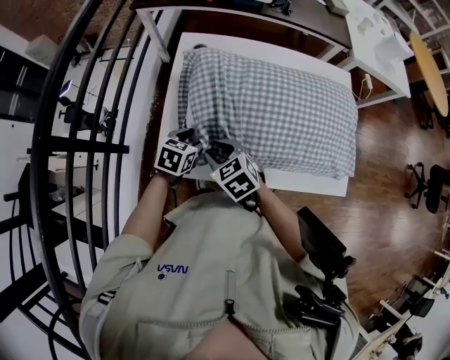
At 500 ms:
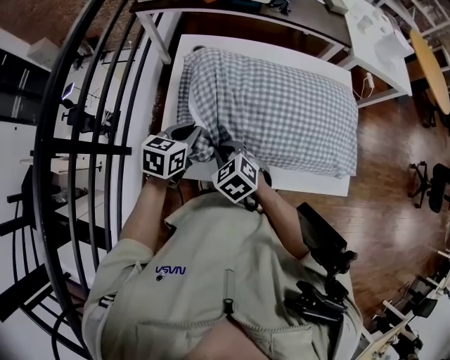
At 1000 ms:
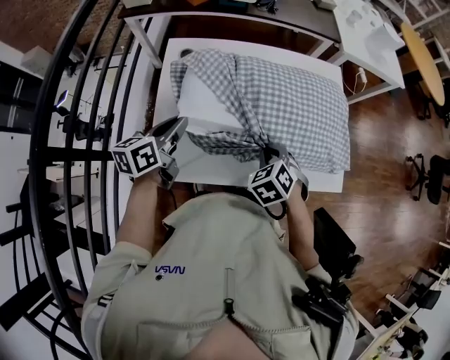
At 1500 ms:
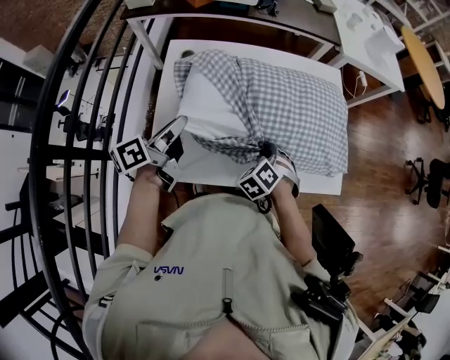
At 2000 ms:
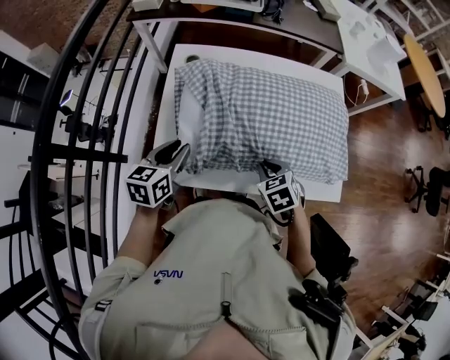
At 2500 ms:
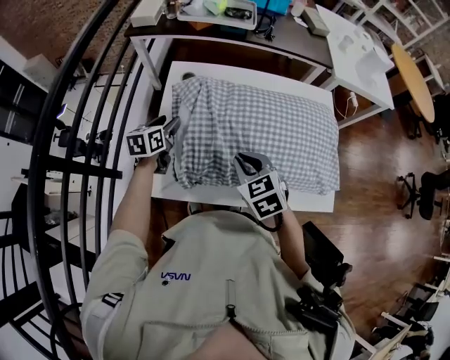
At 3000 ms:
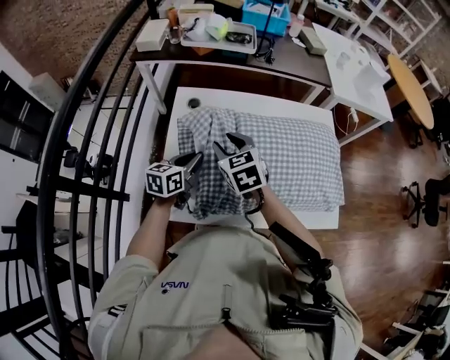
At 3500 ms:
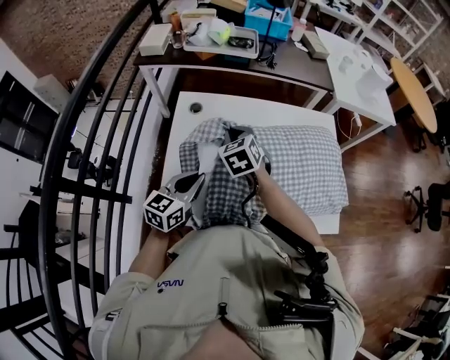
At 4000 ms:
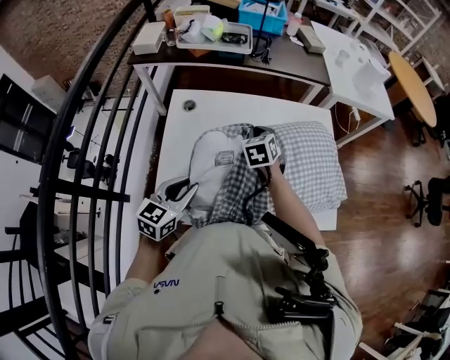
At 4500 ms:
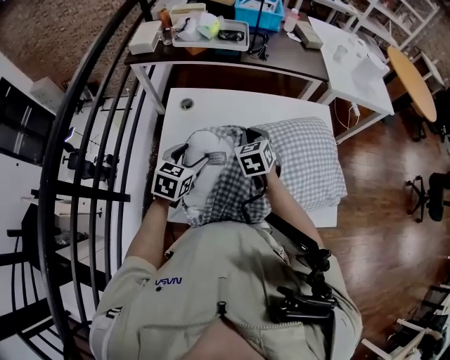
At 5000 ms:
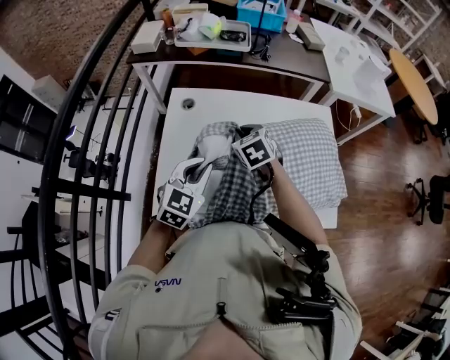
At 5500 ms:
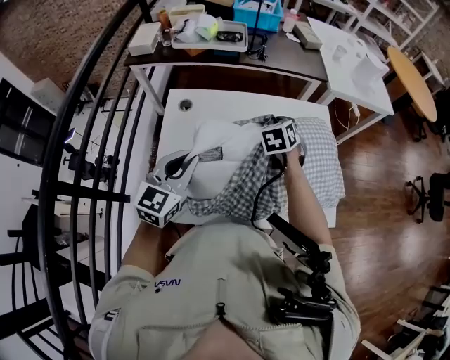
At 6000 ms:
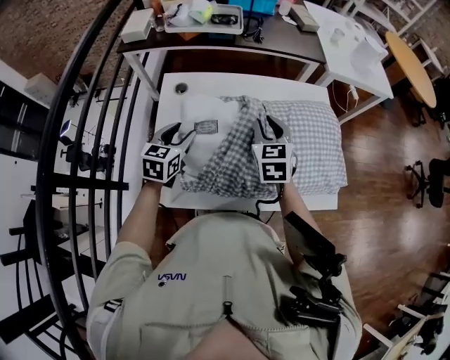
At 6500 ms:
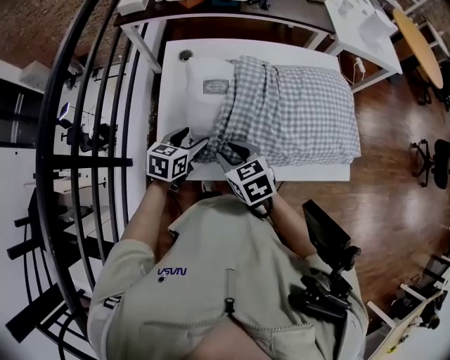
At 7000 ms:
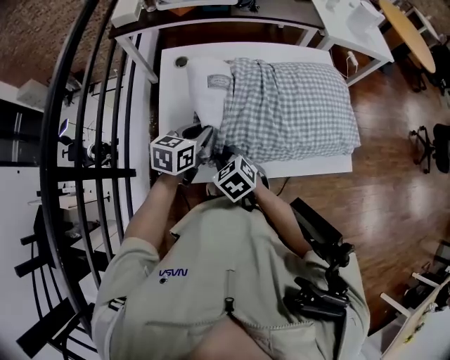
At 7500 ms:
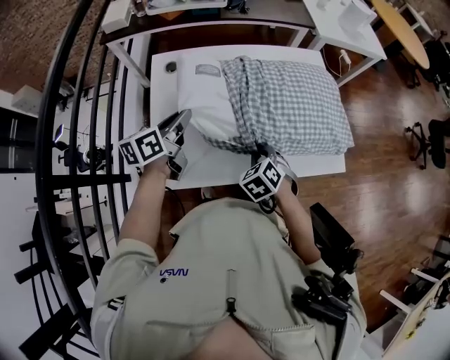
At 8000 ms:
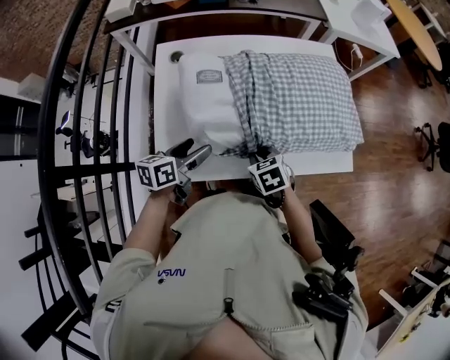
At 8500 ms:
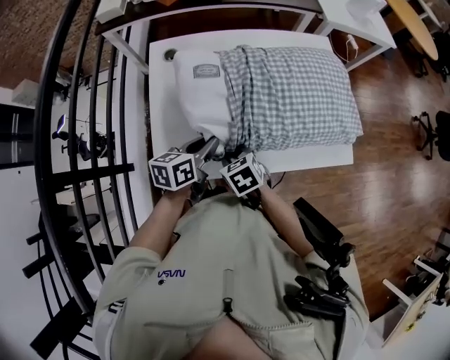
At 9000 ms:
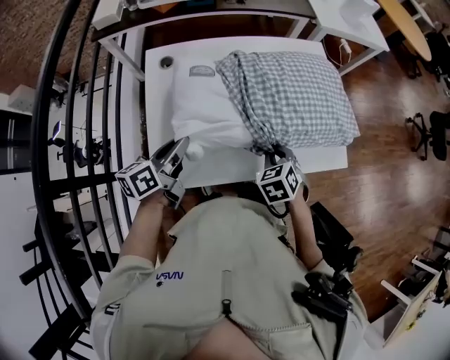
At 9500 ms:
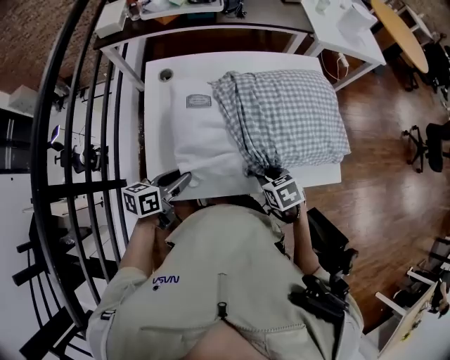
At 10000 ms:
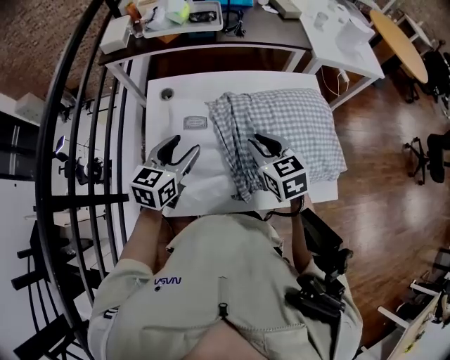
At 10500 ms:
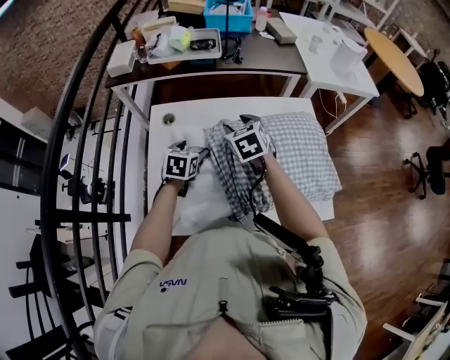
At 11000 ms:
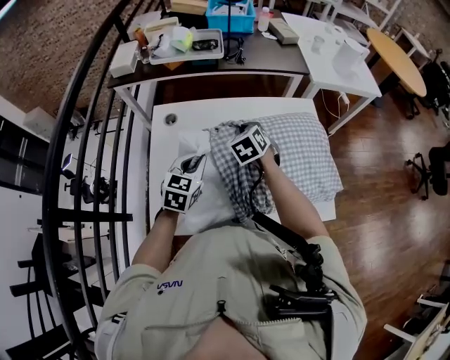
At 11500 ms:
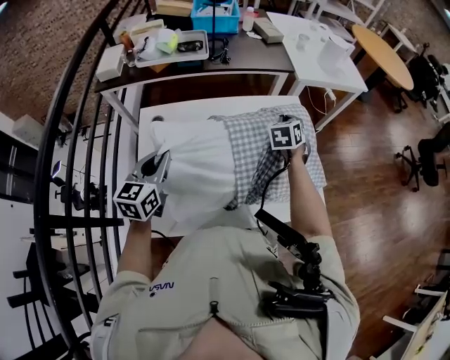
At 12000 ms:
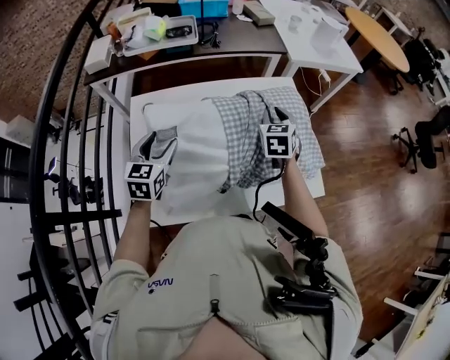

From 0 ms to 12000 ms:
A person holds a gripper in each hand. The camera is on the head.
From 0 ms to 2000 ms: The right gripper changes place by some 20 cm, and rotates roughly 20 degrees. The left gripper travels upward by some 10 cm, and swivels some 20 degrees.
From 2000 ms to 4000 ms: The right gripper travels forward by approximately 25 cm, rotates about 20 degrees, and opens, then closes once more. The left gripper travels forward and back again, roughly 15 cm each way, and rotates approximately 20 degrees.
From 4000 ms to 6000 ms: The left gripper shifts roughly 10 cm forward, and travels upward and back again, about 10 cm each way, while the right gripper goes about 10 cm upward and backward, and opens its fingers.
From 6000 ms to 8000 ms: The left gripper goes forward and backward, approximately 10 cm each way, reversing 2 times, changes its angle by approximately 40 degrees, and opens its fingers, while the right gripper heads backward and downward, covering roughly 25 cm, and tilts its fingers some 30 degrees downward.
From 8000 ms to 10000 ms: The two grippers go roughly 15 cm upward and forward. The left gripper turns by about 30 degrees, and closes, then reopens. The right gripper swivels some 30 degrees.
From 10000 ms to 12000 ms: The left gripper moves up and down over roughly 15 cm, changing direction 2 times, and closes, then opens again. Meanwhile the right gripper goes roughly 20 cm forward and to the right, rotates roughly 30 degrees, and opens, then closes once more.

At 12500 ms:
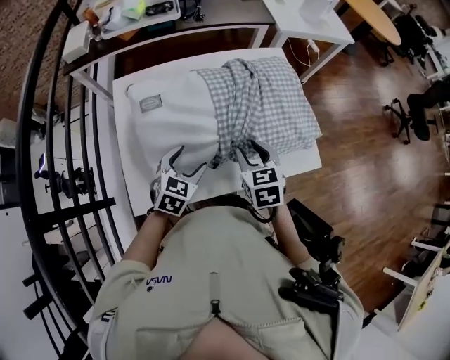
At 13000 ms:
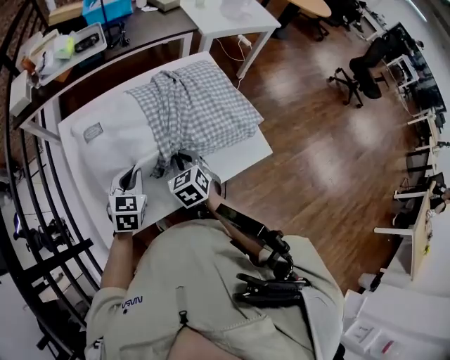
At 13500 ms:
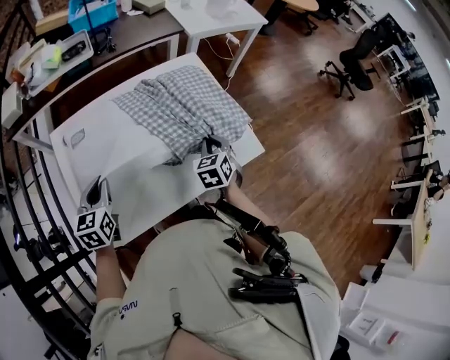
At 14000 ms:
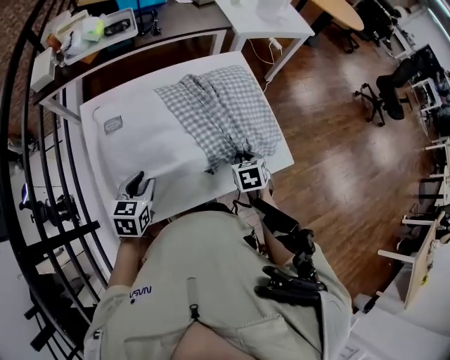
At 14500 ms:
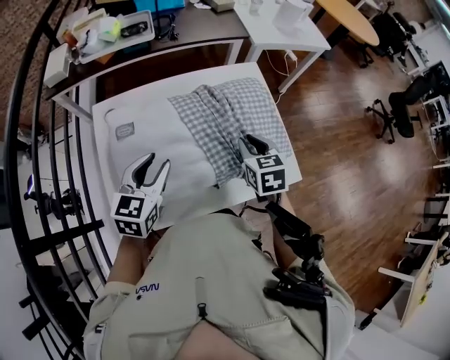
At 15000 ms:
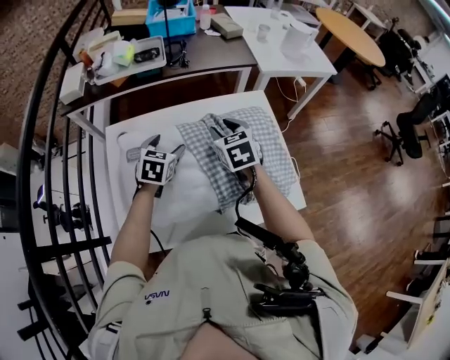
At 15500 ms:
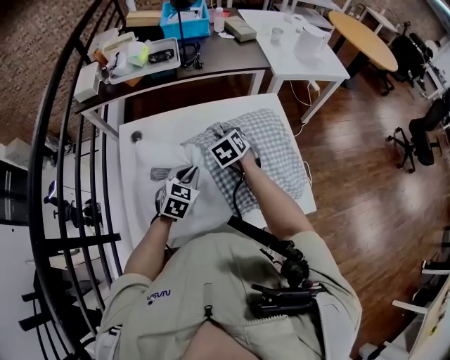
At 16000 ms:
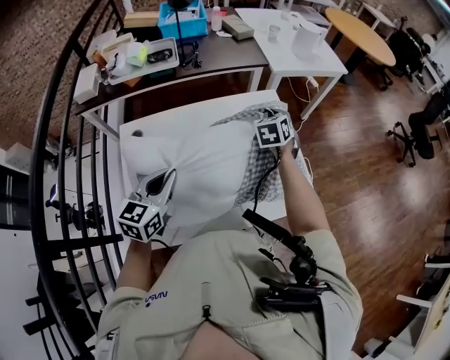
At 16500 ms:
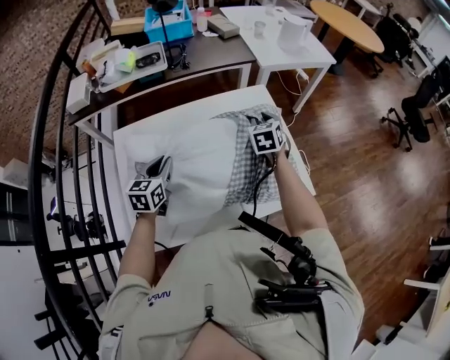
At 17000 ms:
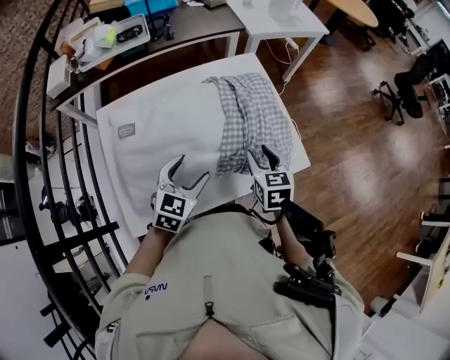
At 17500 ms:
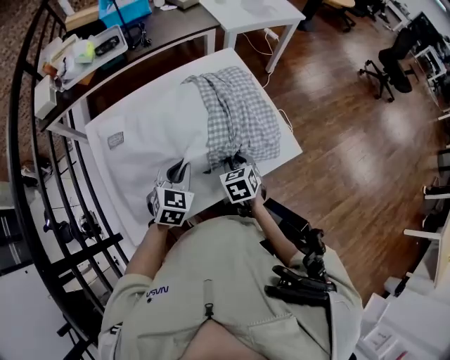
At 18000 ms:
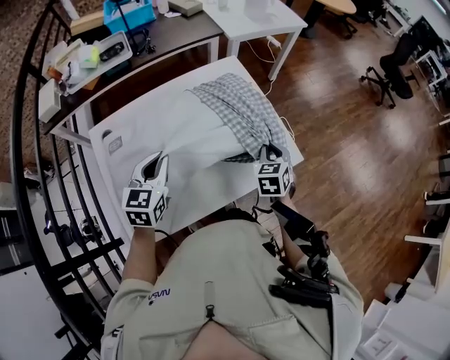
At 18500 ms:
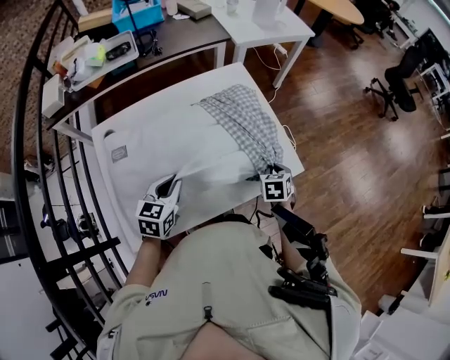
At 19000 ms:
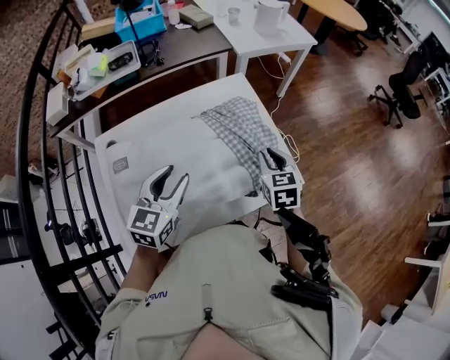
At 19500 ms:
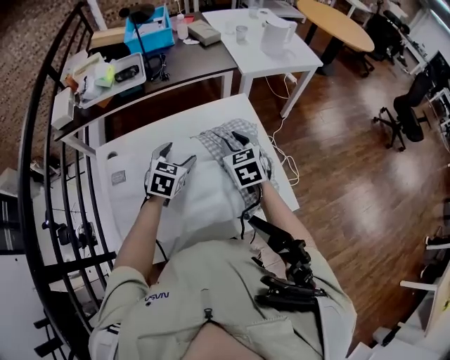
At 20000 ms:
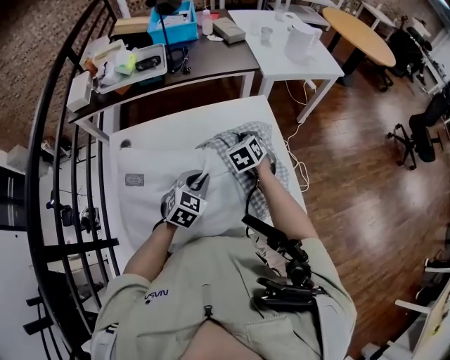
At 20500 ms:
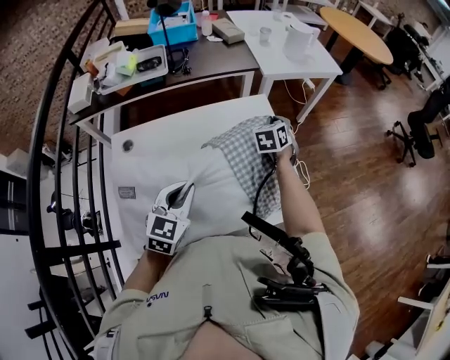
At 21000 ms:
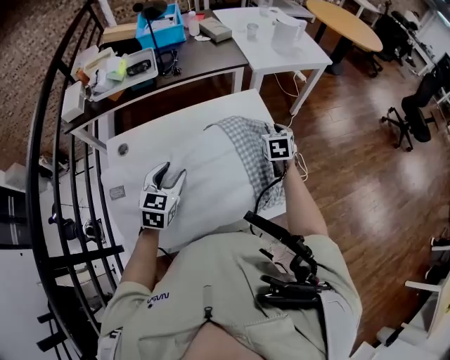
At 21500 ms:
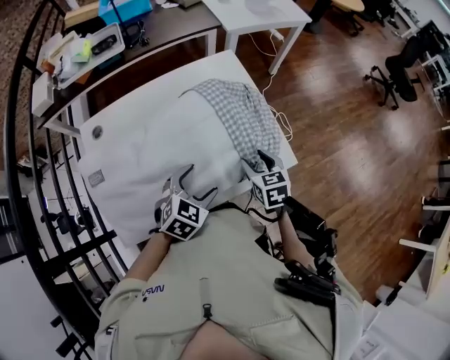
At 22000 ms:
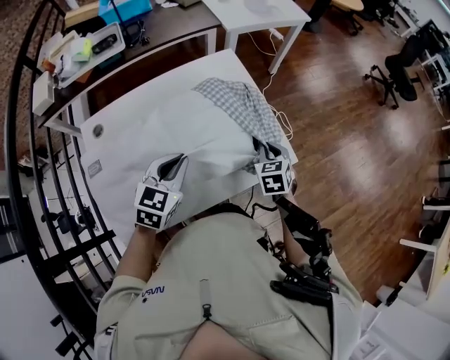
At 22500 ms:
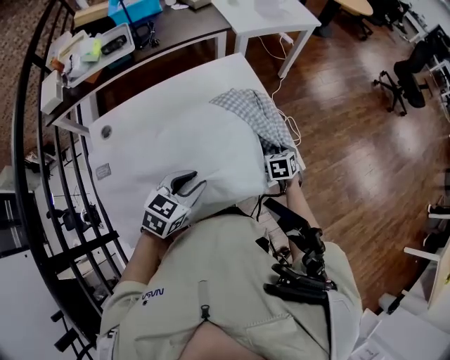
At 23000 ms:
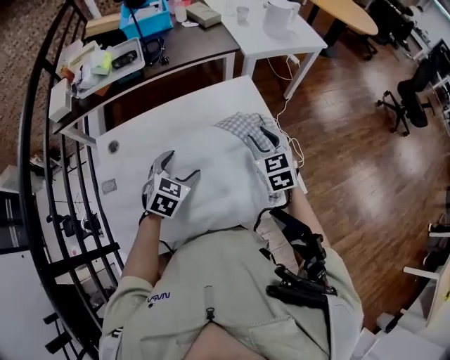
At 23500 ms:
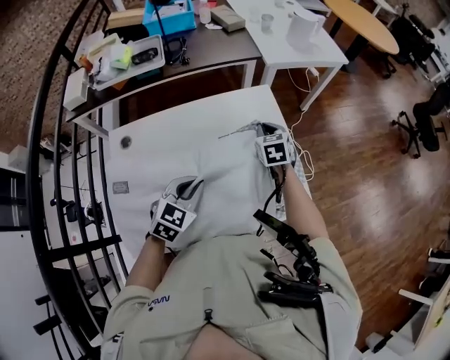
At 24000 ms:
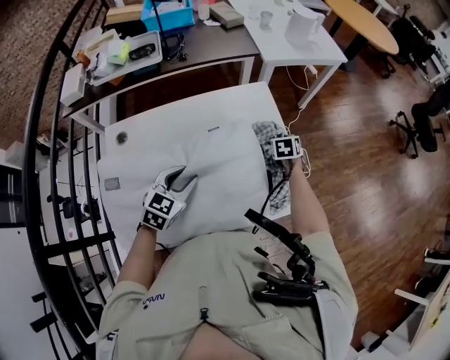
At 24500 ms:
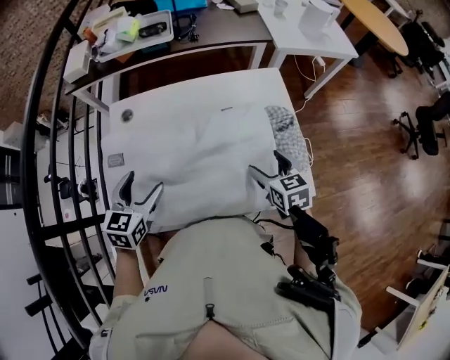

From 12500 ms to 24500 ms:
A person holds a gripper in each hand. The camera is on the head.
From 12500 ms to 14500 ms: The right gripper is displaced forward and to the right by some 10 cm; the left gripper goes up and down, about 15 cm each way, reversing 2 times, and closes up.
From 14500 ms to 16500 ms: The right gripper heads forward, covering some 15 cm. The left gripper moves forward and backward over approximately 15 cm, changing direction 2 times, and opens, then closes again.
From 16500 ms to 18500 ms: The left gripper is displaced to the right and backward by about 15 cm, and opens, then closes again; the right gripper moves backward, to the right and downward, roughly 30 cm, and swivels about 30 degrees.
From 18500 ms to 20500 ms: The left gripper travels upward by approximately 10 cm, reaches some 20 cm forward, then returns, and opens, then closes again. Meanwhile the right gripper shifts roughly 30 cm forward and upward, changes its angle by approximately 20 degrees, and opens, then closes once more.
From 20500 ms to 22500 ms: The right gripper travels backward, downward and to the right by roughly 30 cm, changes its angle by about 20 degrees, and opens, then closes once more. The left gripper goes left and right, about 15 cm each way, reversing 2 times, swivels about 30 degrees, and opens and closes again.
From 22500 ms to 24500 ms: The left gripper shifts by about 20 cm, swivels about 40 degrees, and opens its fingers. The right gripper moves up and down over about 20 cm, changing direction 2 times, changes its angle by roughly 40 degrees, and opens its fingers.

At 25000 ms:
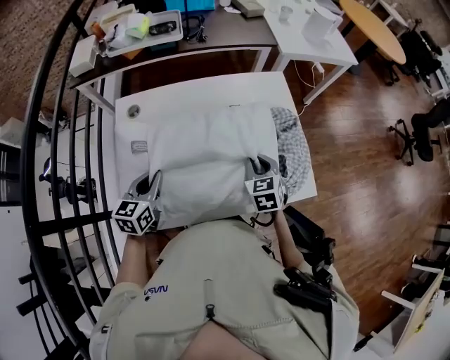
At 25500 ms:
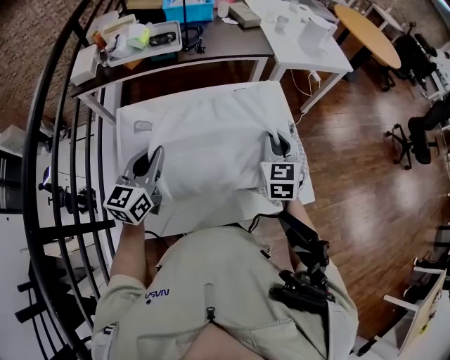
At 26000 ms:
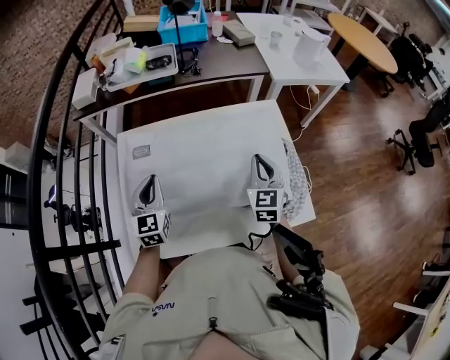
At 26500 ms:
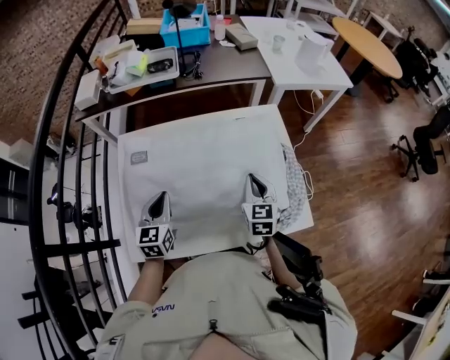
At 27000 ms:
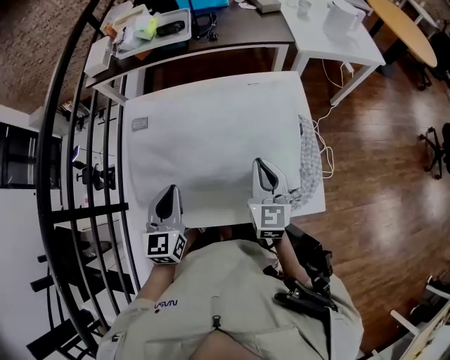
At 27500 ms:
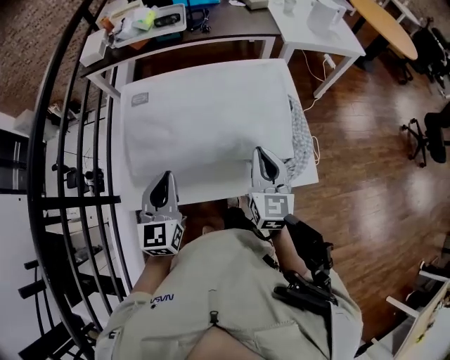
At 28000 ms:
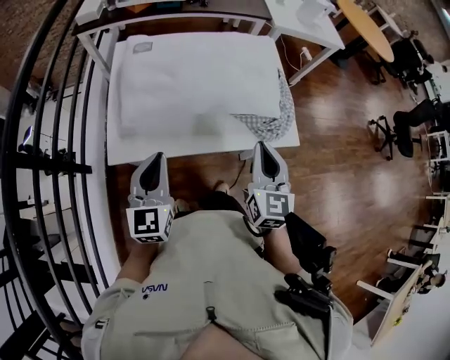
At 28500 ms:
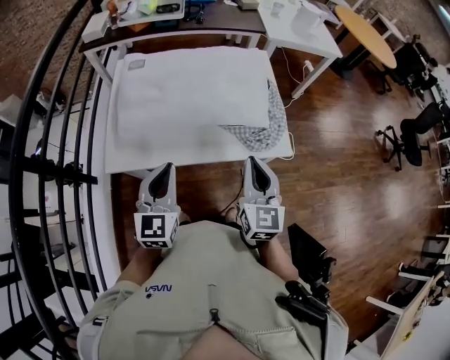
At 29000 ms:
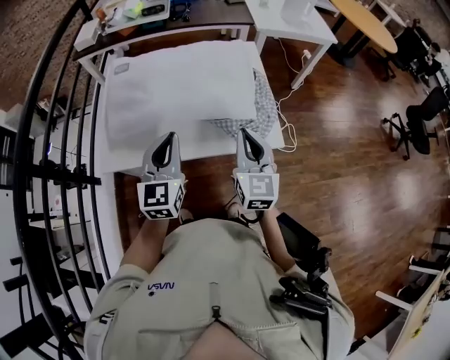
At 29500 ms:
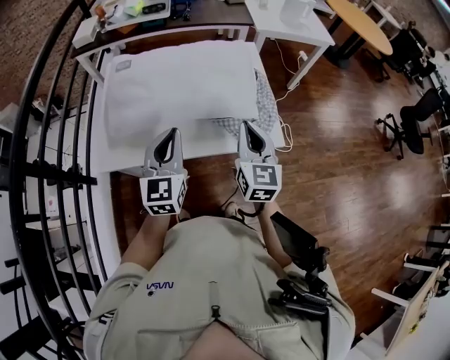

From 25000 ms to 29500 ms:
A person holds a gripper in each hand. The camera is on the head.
From 25000 ms to 27000 ms: The left gripper goes up and down, approximately 10 cm each way, reversing 2 times, and changes its angle by about 20 degrees; the right gripper moves up and down over roughly 10 cm, changing direction 2 times, and swivels about 30 degrees.
From 27000 ms to 29500 ms: The right gripper moves backward, roughly 20 cm, while the left gripper heads backward, to the right and upward, covering roughly 20 cm.
